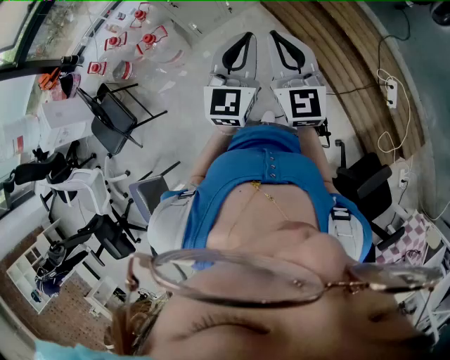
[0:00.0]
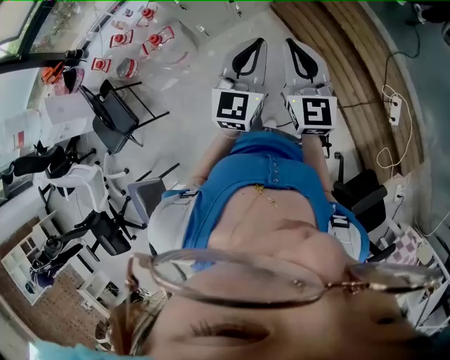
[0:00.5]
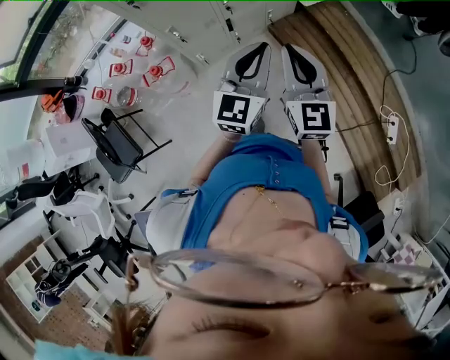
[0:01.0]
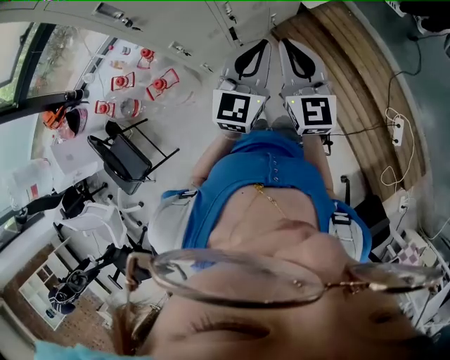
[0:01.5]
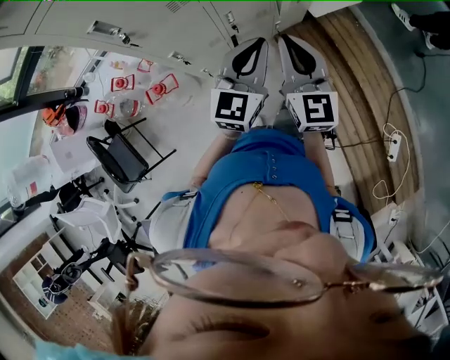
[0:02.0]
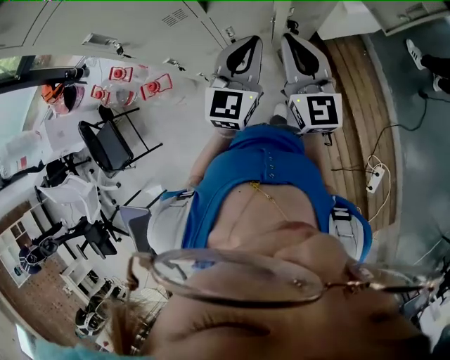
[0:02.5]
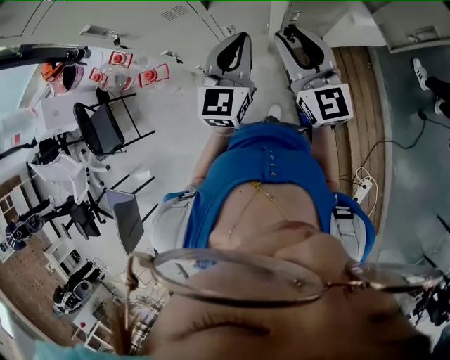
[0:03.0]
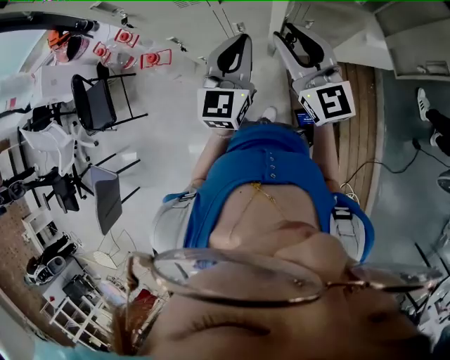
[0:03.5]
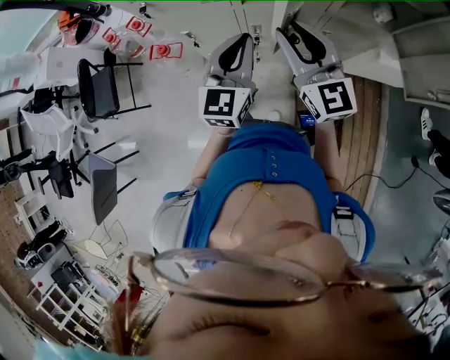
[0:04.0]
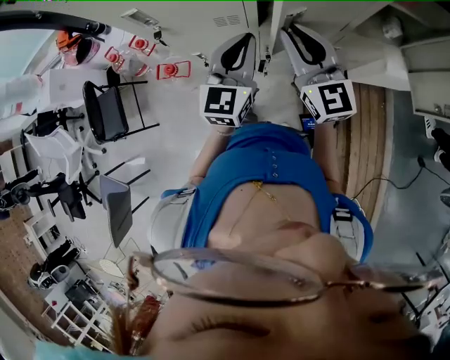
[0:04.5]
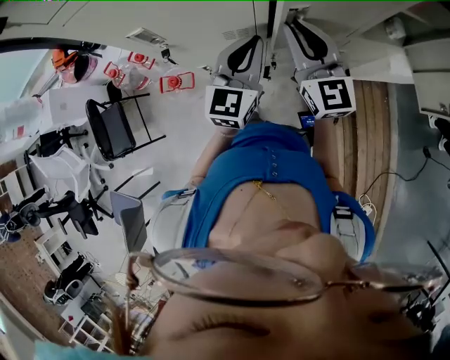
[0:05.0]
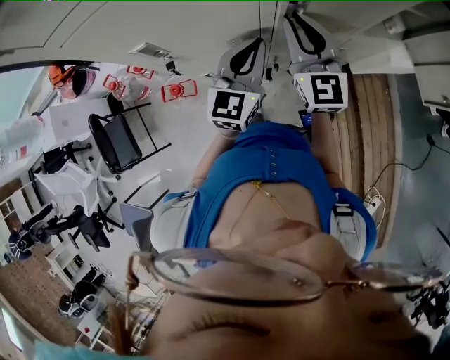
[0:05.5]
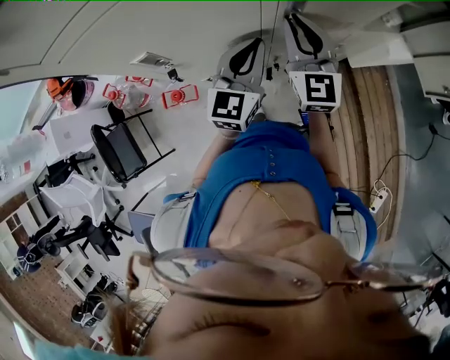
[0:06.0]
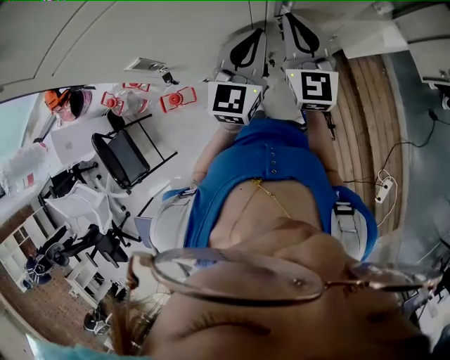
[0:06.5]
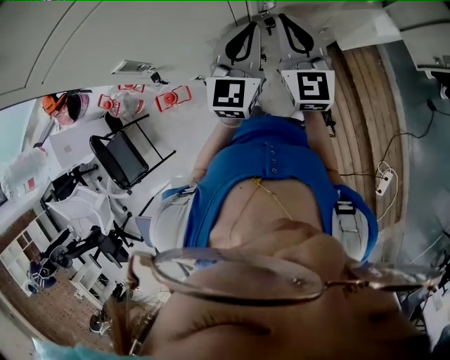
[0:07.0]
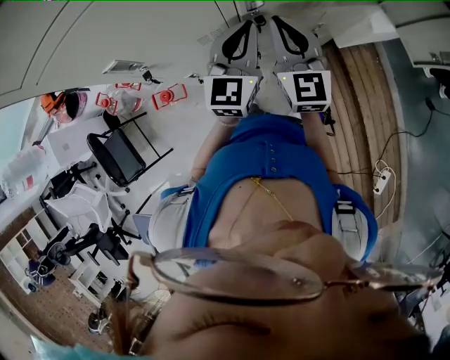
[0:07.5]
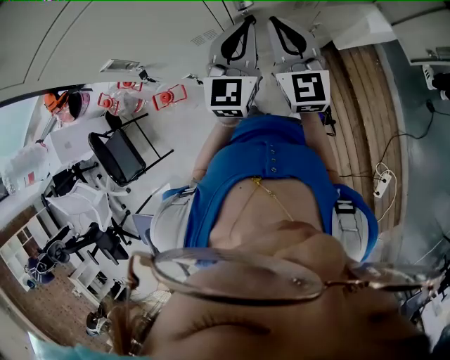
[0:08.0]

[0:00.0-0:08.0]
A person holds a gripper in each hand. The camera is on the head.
0:00.0 to 0:02.0: The two grippers travel together, forward, roughly 40 cm.
0:02.0 to 0:04.0: The right gripper moves about 15 cm, swivels about 40 degrees, and opens its fingers, while the left gripper changes place by some 10 cm, and rotates approximately 40 degrees.
0:04.0 to 0:06.0: The left gripper shifts by roughly 15 cm, and swivels some 20 degrees; the right gripper ends up about 20 cm from where it was, and swivels some 30 degrees.
0:06.0 to 0:08.0: Both grippers travel together to the right, approximately 5 cm.

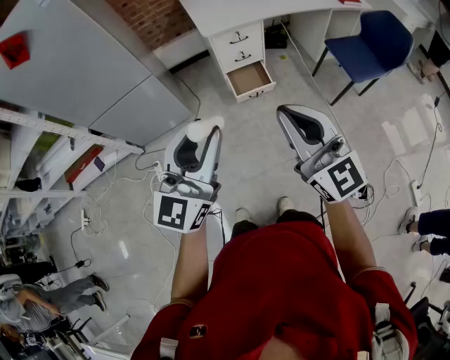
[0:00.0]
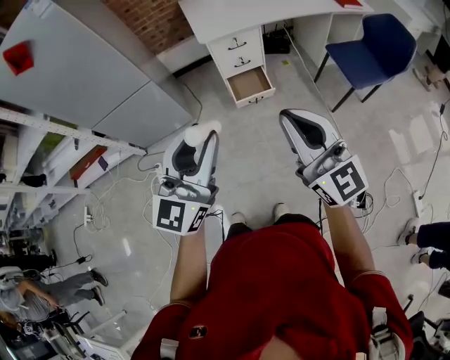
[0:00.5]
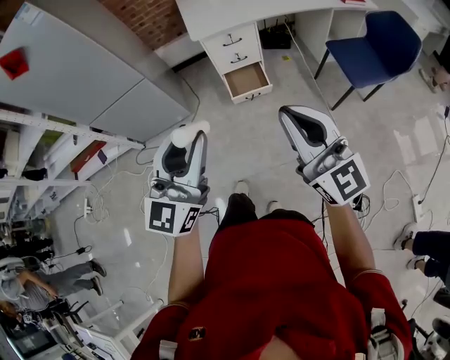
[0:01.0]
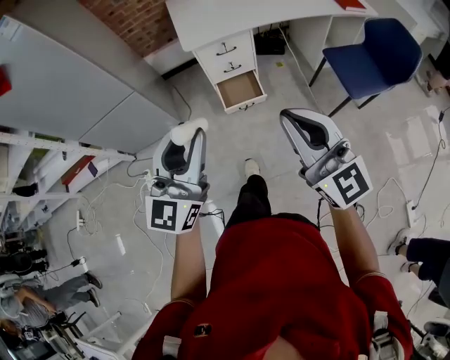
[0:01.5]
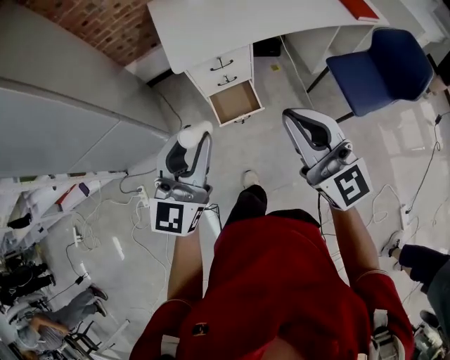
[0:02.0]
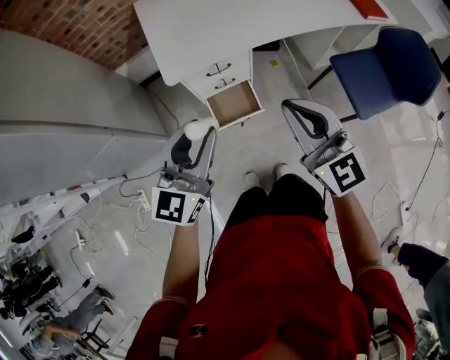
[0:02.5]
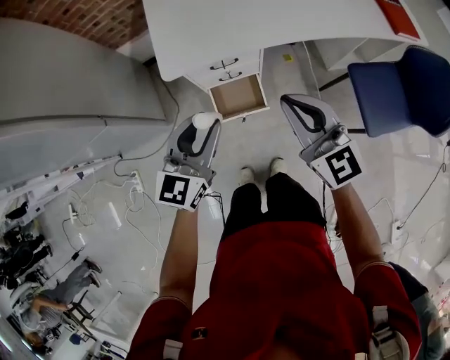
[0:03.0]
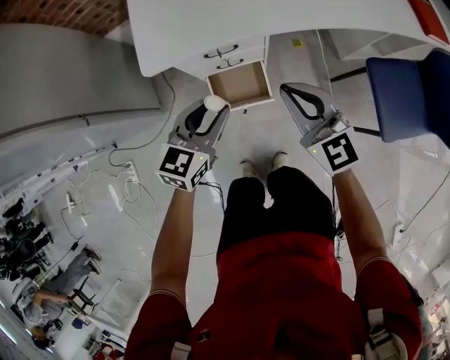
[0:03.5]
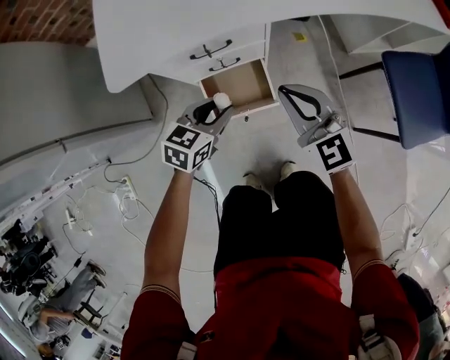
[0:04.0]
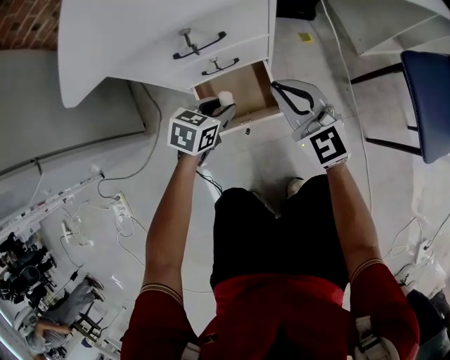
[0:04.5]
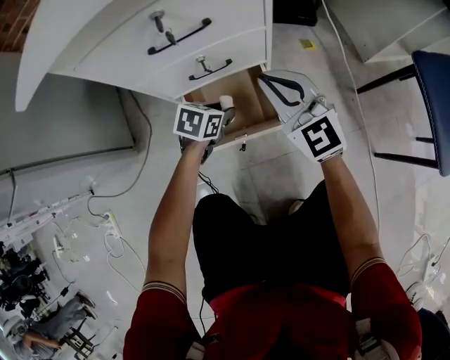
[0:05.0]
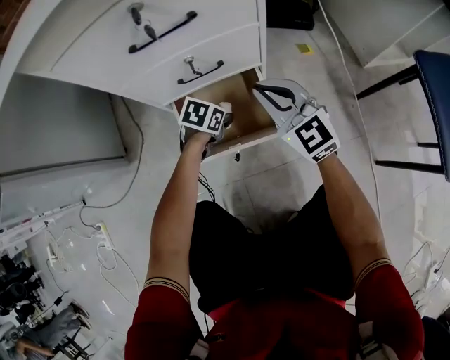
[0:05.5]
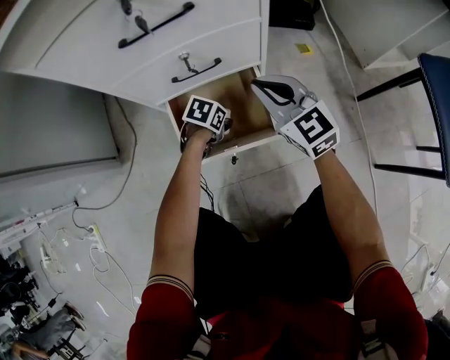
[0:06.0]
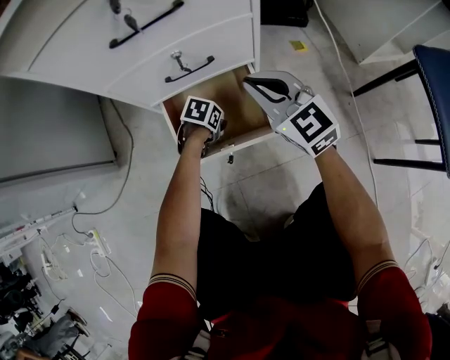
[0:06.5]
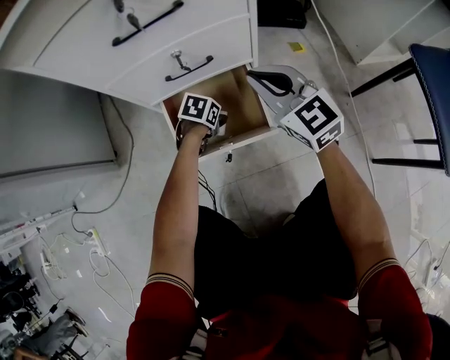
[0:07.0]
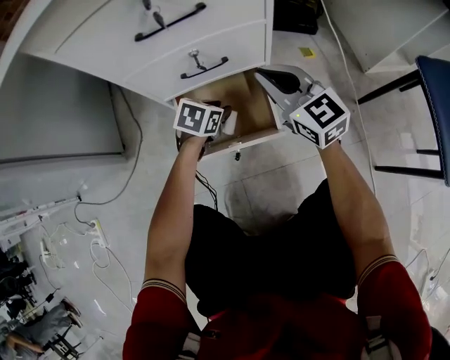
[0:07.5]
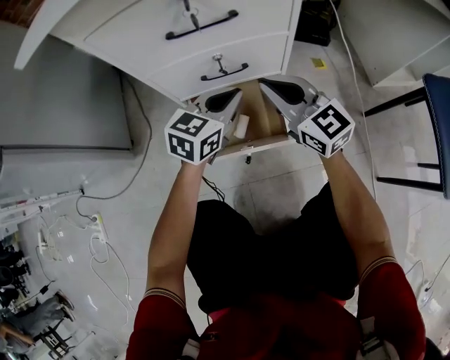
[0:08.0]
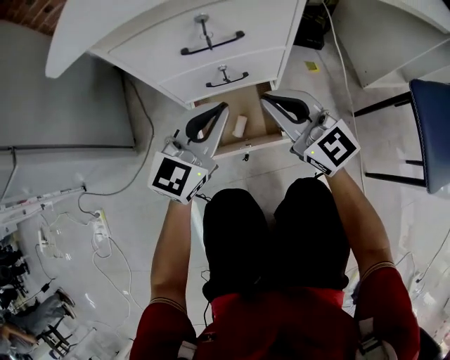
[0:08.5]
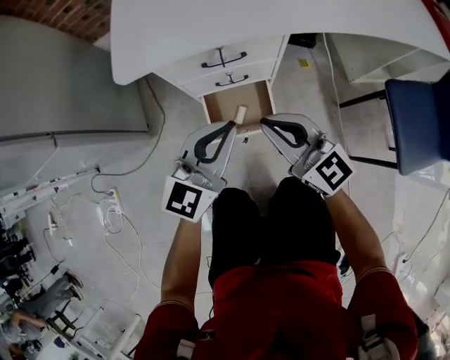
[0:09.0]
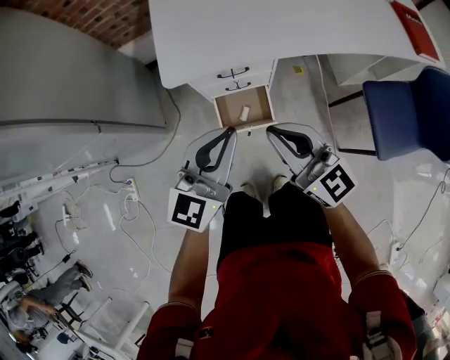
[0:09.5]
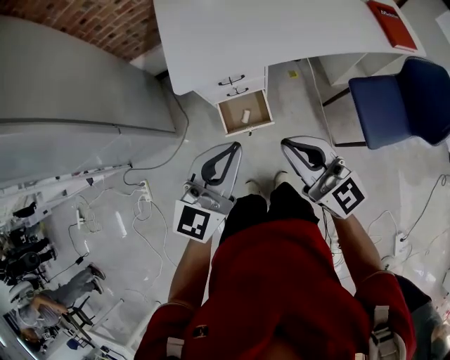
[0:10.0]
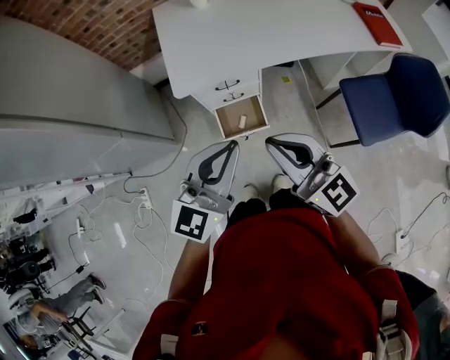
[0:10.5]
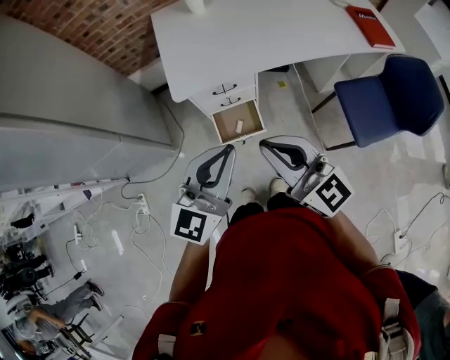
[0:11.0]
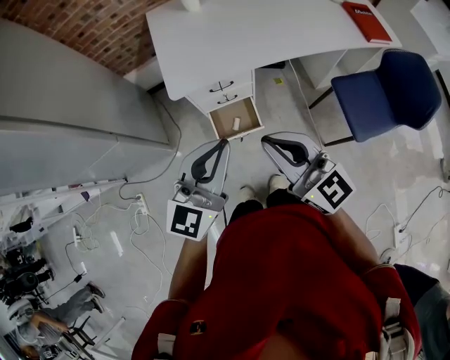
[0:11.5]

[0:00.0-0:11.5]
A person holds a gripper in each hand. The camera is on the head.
0:00.0 to 0:02.0: The right gripper shifts some 35 cm forward and to the right. The left gripper shifts some 30 cm forward.
0:02.0 to 0:04.0: Both grippers move downward and forward, roughly 50 cm. The left gripper angles its fingers downward, by about 40 degrees.
0:04.0 to 0:06.0: Both grippers move downward, roughly 40 cm. The left gripper rotates approximately 30 degrees.
0:06.0 to 0:07.5: The left gripper is displaced upward by about 10 cm.
0:07.5 to 0:09.5: The grippers both shift upward by about 60 cm. The left gripper tips its fingers upward by about 50 degrees, and closes its fingers.
0:09.5 to 0:11.5: The two grippers go roughly 20 cm upward and backward.

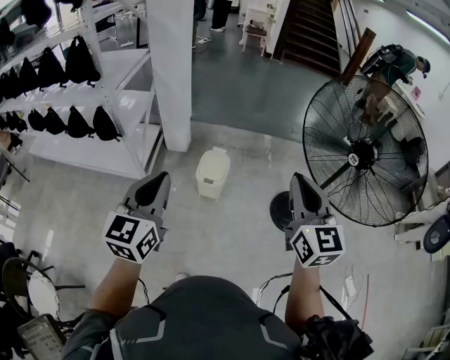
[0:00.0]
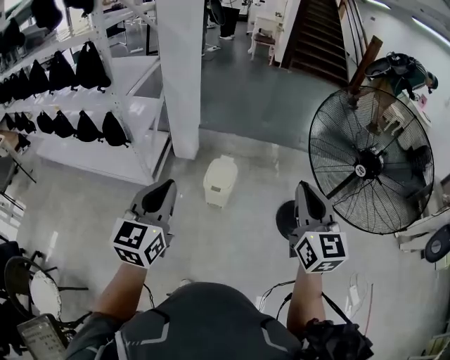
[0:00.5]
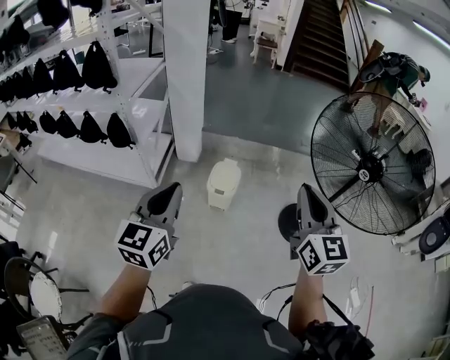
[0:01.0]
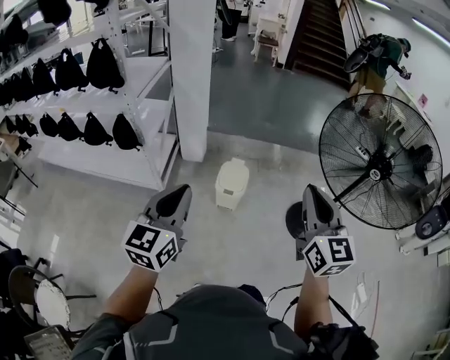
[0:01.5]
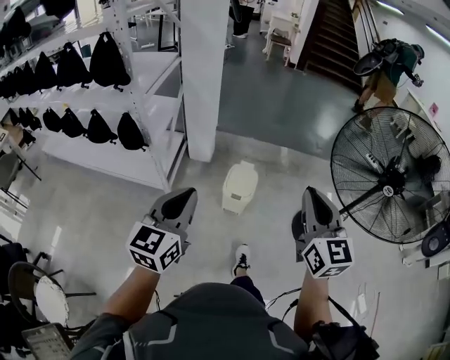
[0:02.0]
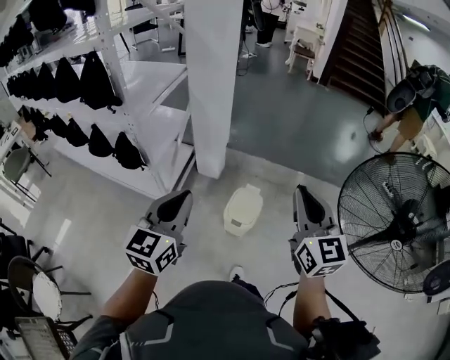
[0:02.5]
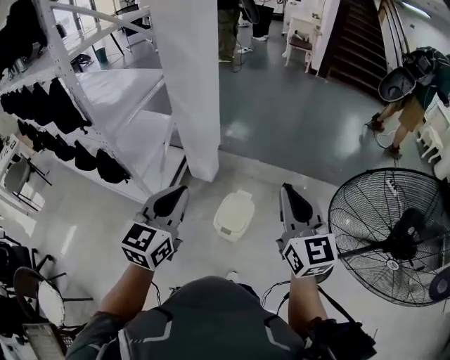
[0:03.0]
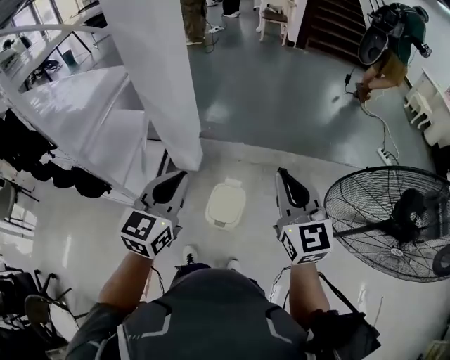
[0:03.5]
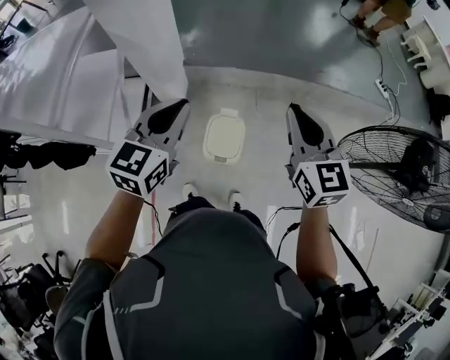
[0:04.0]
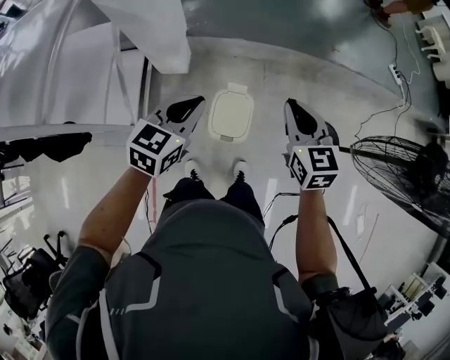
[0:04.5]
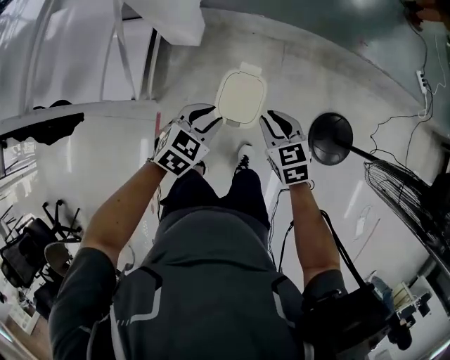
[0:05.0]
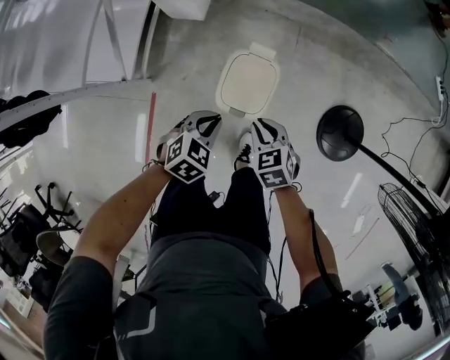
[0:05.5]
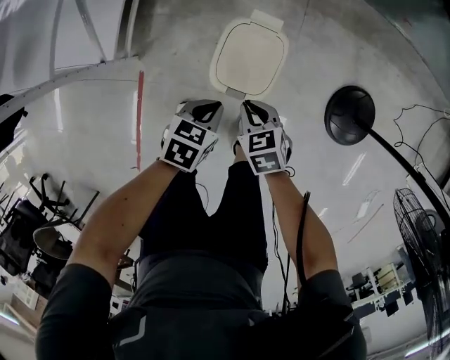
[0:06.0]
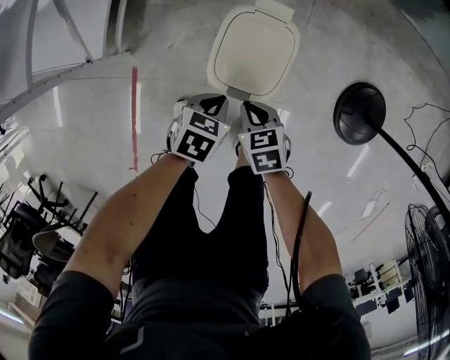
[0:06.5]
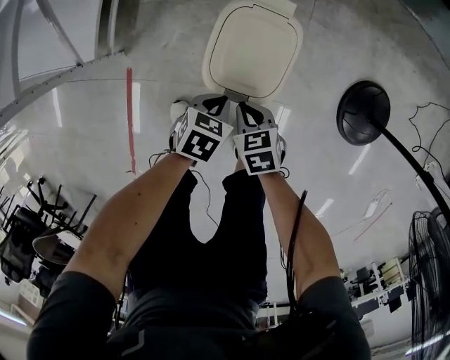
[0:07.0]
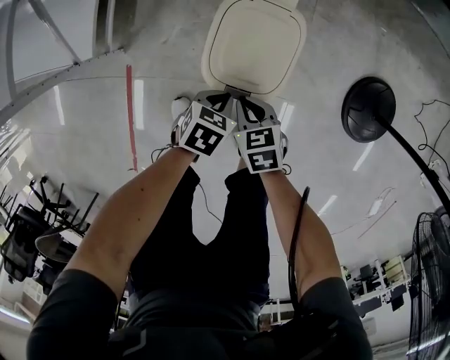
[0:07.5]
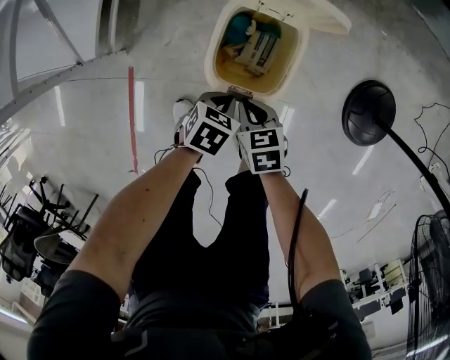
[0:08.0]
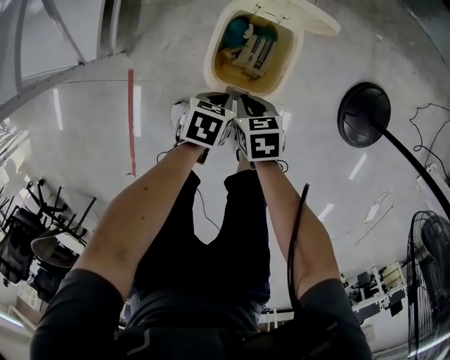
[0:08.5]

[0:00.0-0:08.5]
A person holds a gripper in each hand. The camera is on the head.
0:00.0 to 0:02.0: The left gripper goes approximately 10 cm to the left. Meanwhile the right gripper travels to the left and forward by approximately 10 cm.
0:02.0 to 0:04.0: Both grippers travel together forward, approximately 40 cm.
0:04.0 to 0:06.5: Both grippers move downward, about 70 cm. The left gripper angles its fingers downward, by about 50 degrees, and opens, then closes again. The right gripper tips its fingers downward by some 50 degrees.
0:06.5 to 0:08.5: The left gripper goes approximately 5 cm downward.
